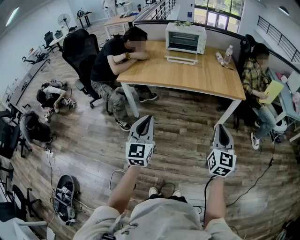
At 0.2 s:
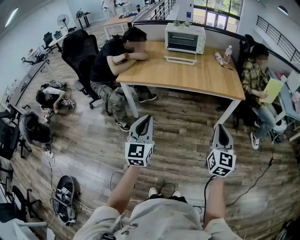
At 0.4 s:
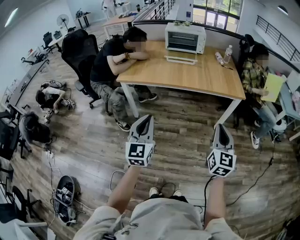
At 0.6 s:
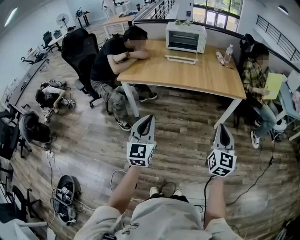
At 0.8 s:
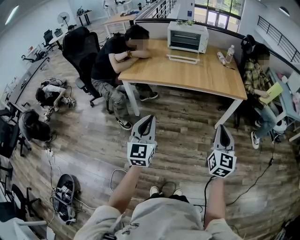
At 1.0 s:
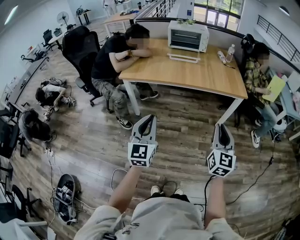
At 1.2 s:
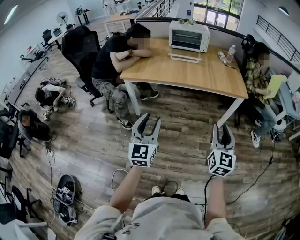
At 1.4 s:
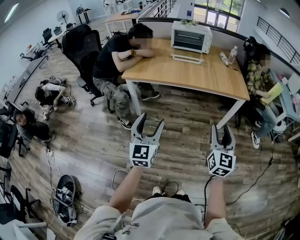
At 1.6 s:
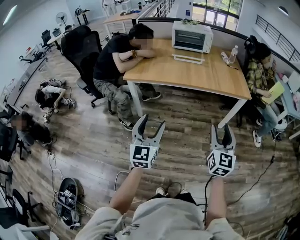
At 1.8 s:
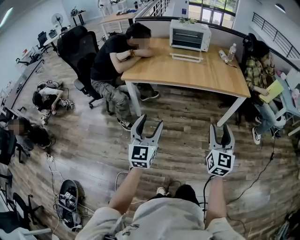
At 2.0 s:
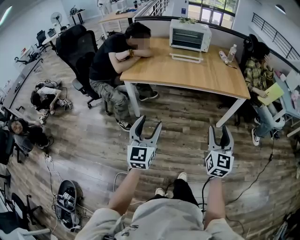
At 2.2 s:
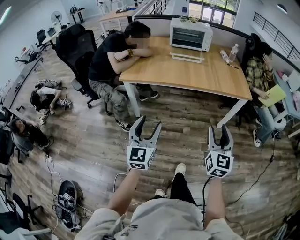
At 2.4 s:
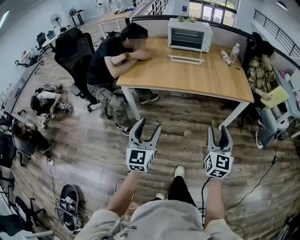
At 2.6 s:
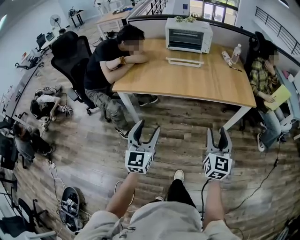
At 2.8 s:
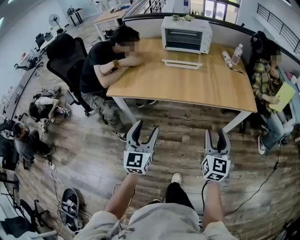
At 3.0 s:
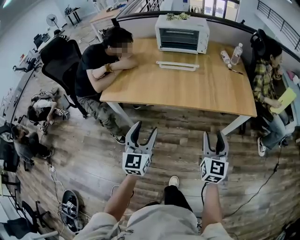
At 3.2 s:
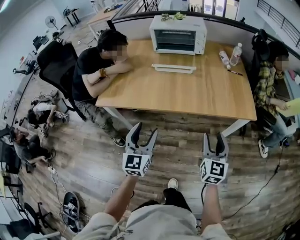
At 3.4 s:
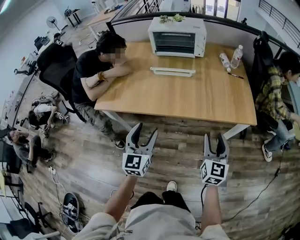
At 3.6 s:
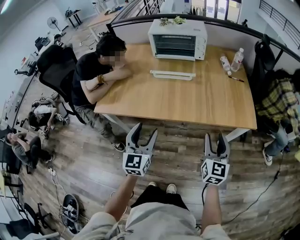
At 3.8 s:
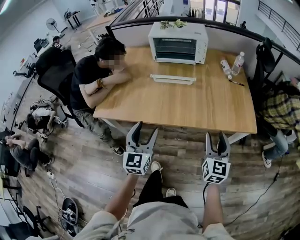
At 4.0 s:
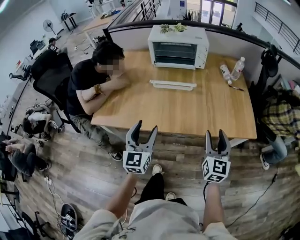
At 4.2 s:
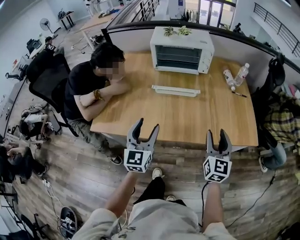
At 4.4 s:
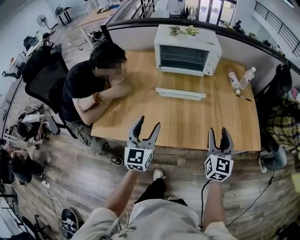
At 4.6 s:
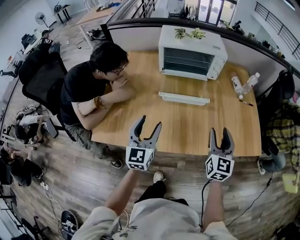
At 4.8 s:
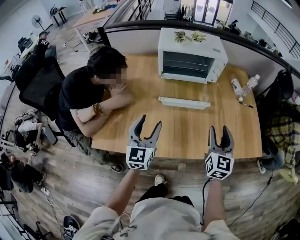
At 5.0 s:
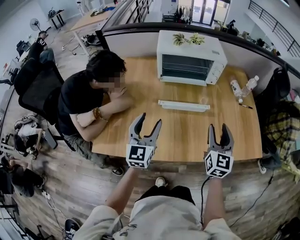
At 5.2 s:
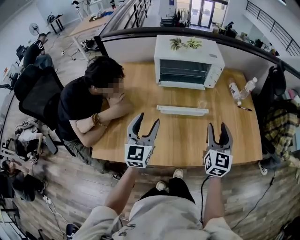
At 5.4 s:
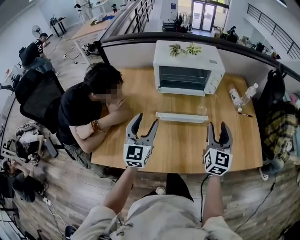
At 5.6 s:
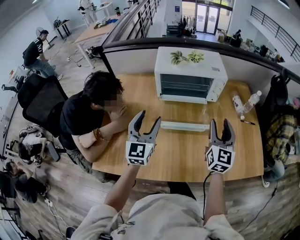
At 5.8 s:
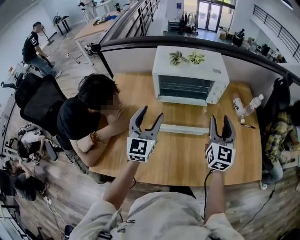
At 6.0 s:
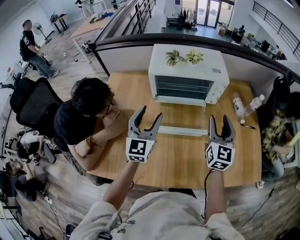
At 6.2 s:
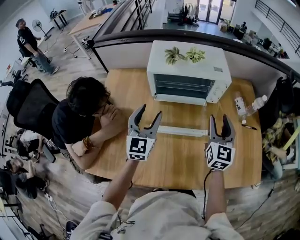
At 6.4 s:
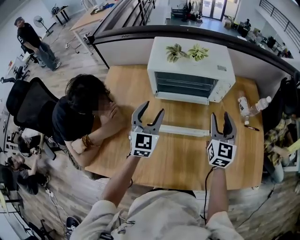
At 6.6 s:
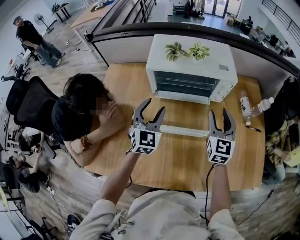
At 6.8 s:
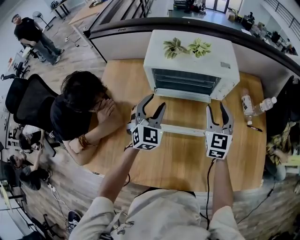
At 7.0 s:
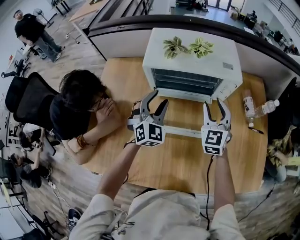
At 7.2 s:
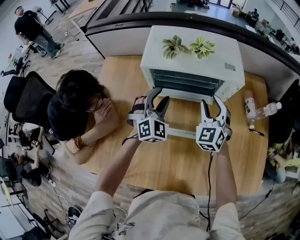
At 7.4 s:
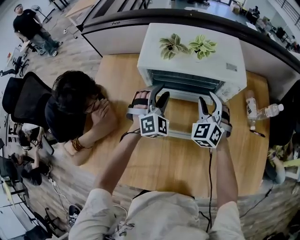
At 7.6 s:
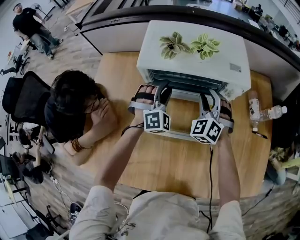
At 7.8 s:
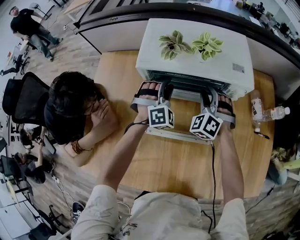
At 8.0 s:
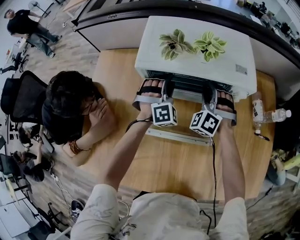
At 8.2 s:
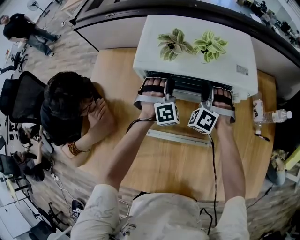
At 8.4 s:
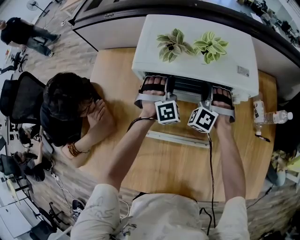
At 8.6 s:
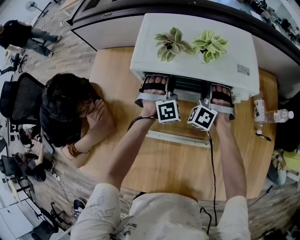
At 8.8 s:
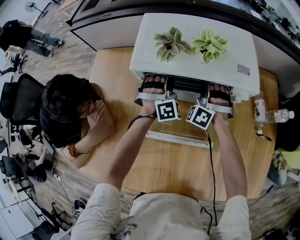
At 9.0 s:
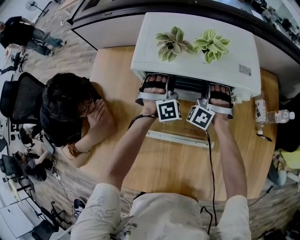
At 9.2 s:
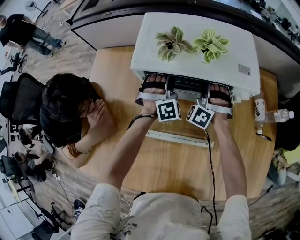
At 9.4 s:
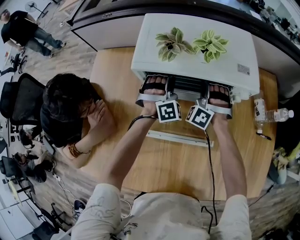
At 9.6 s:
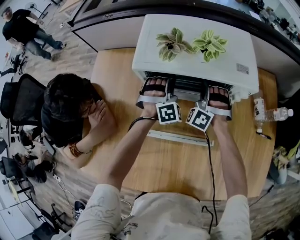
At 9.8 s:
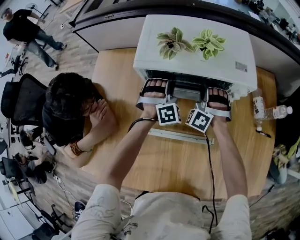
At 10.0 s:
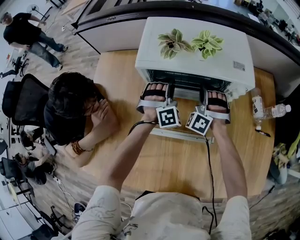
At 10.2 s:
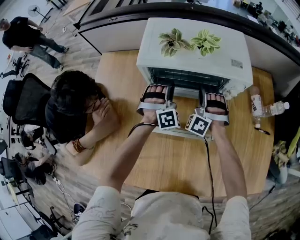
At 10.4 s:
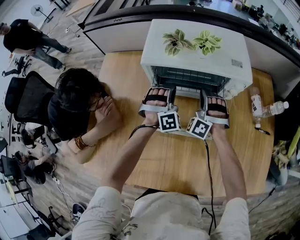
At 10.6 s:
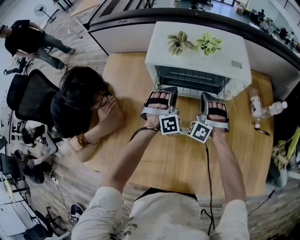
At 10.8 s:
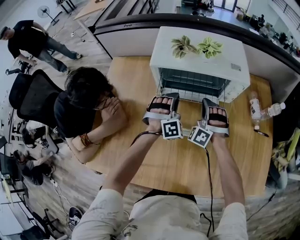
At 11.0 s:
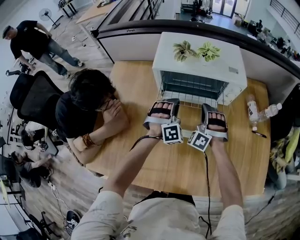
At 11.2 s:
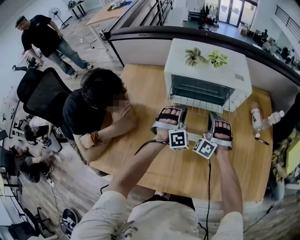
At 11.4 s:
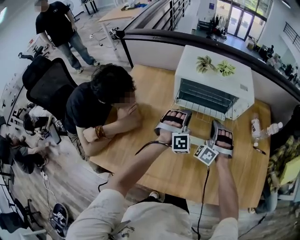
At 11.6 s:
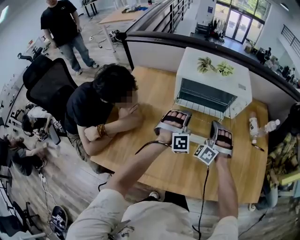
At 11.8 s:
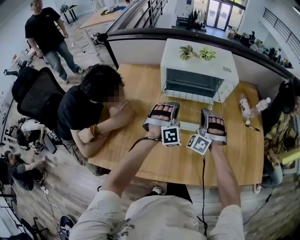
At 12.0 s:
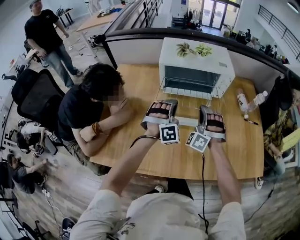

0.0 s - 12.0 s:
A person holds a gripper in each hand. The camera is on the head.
0.0 s - 1.6 s: The two grippers go about 5 cm to the left. The right gripper opens, while the left gripper opens.
1.6 s - 3.0 s: Both grippers move forward, approximately 25 cm.
3.0 s - 4.4 s: The grippers both shift forward by approximately 25 cm.
4.4 s - 6.0 s: The grippers both shift forward by some 25 cm.
6.0 s - 7.6 s: The left gripper goes roughly 25 cm forward and downward, and rolls clockwise, seen from behind, by about 60 degrees. Meanwhile the right gripper heads forward, downward and to the left, covering roughly 25 cm, and rolls counterclockwise, seen from behind, by some 50 degrees.
7.6 s - 9.0 s: Both grippers move forward, approximately 10 cm. The left gripper closes up, while the right gripper swivels approximately 30 degrees, and closes its fingers.
9.0 s - 10.4 s: Both grippers move backward, approximately 10 cm.
10.4 s - 12.0 s: The two grippers go about 20 cm backward and upward.

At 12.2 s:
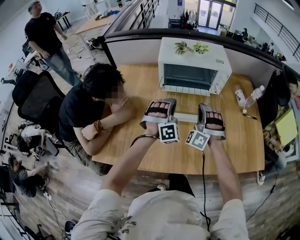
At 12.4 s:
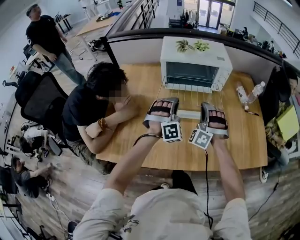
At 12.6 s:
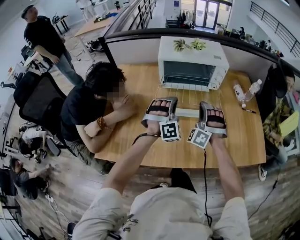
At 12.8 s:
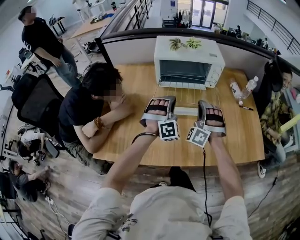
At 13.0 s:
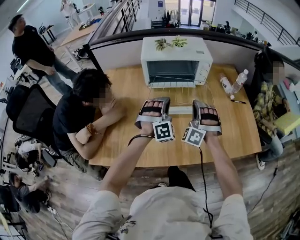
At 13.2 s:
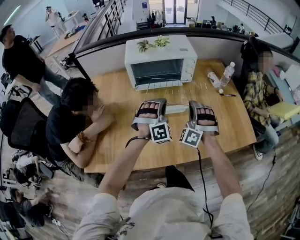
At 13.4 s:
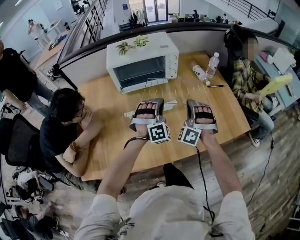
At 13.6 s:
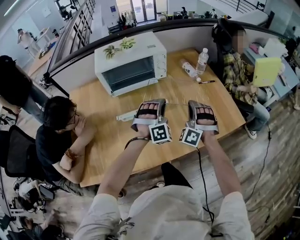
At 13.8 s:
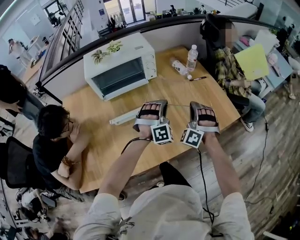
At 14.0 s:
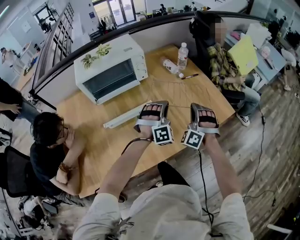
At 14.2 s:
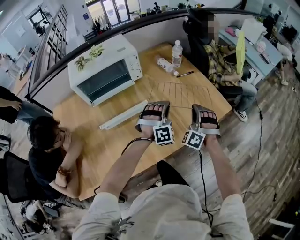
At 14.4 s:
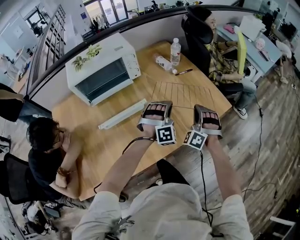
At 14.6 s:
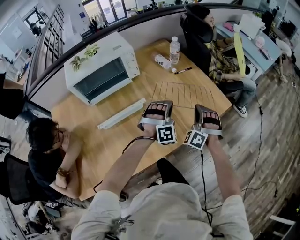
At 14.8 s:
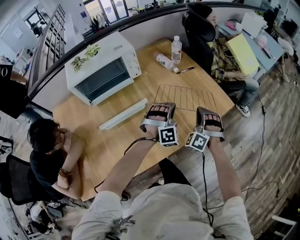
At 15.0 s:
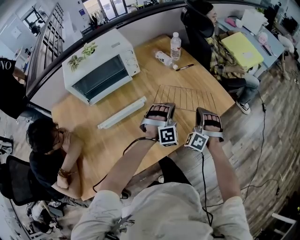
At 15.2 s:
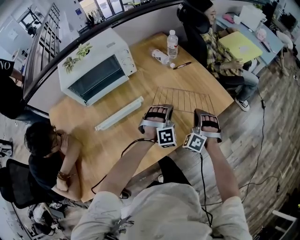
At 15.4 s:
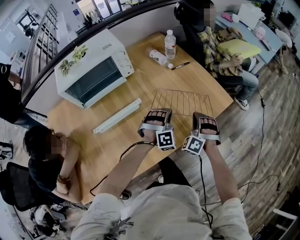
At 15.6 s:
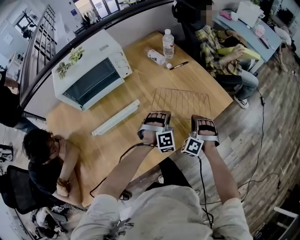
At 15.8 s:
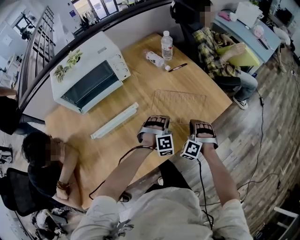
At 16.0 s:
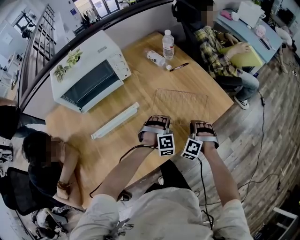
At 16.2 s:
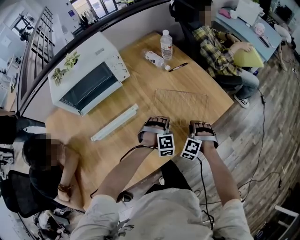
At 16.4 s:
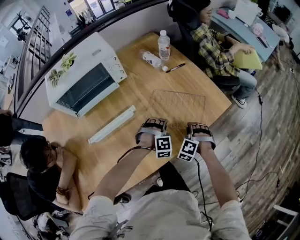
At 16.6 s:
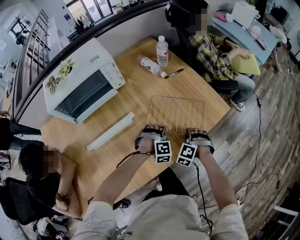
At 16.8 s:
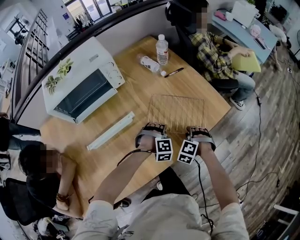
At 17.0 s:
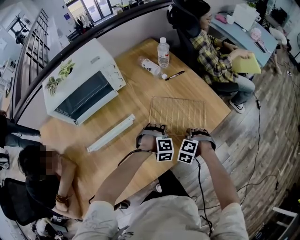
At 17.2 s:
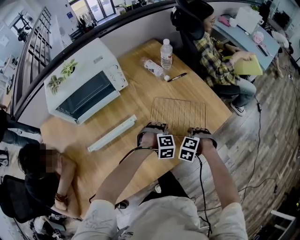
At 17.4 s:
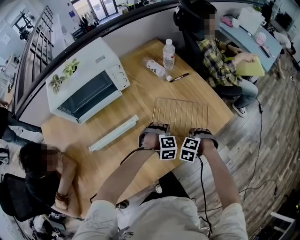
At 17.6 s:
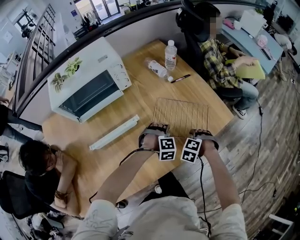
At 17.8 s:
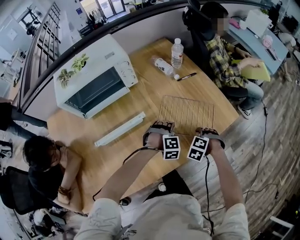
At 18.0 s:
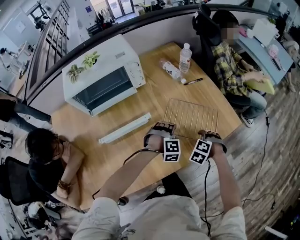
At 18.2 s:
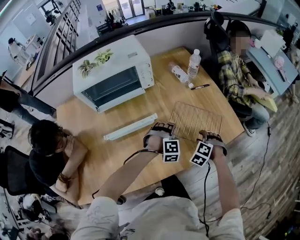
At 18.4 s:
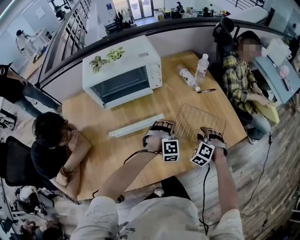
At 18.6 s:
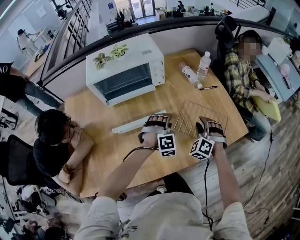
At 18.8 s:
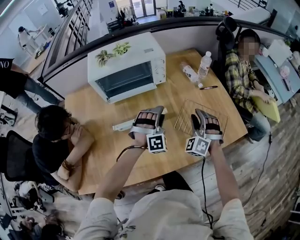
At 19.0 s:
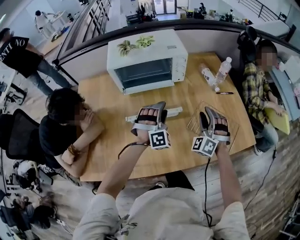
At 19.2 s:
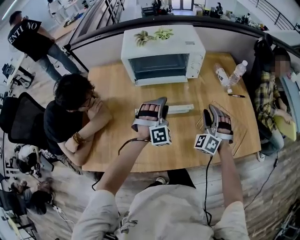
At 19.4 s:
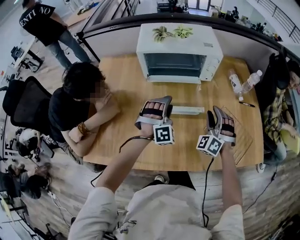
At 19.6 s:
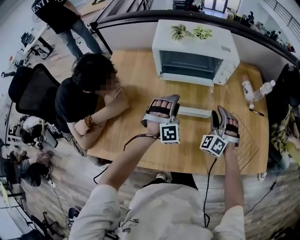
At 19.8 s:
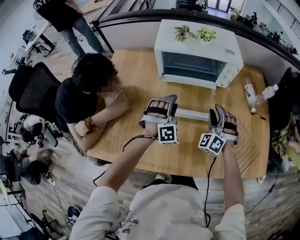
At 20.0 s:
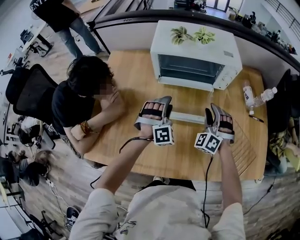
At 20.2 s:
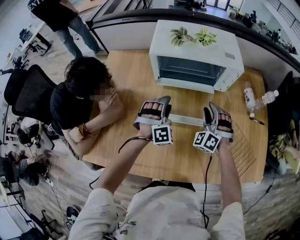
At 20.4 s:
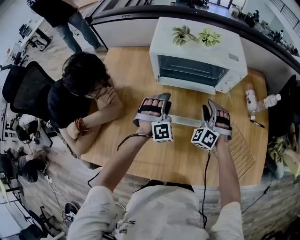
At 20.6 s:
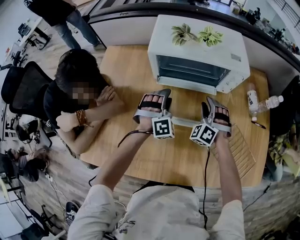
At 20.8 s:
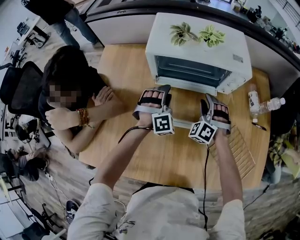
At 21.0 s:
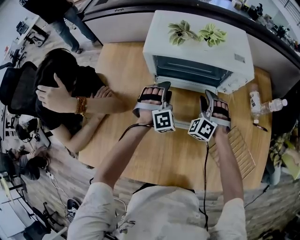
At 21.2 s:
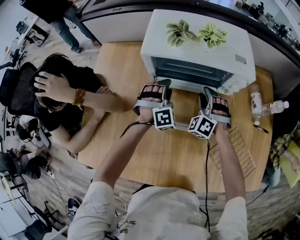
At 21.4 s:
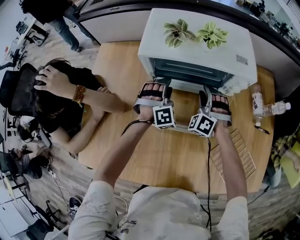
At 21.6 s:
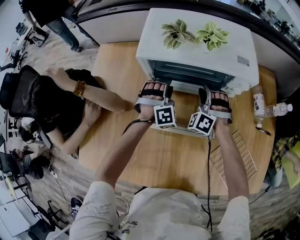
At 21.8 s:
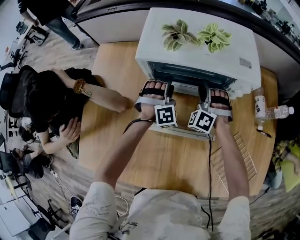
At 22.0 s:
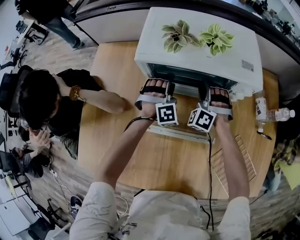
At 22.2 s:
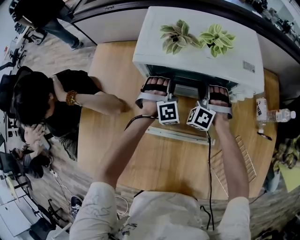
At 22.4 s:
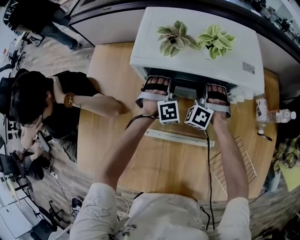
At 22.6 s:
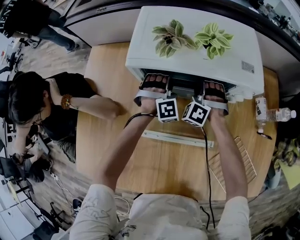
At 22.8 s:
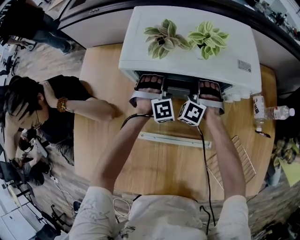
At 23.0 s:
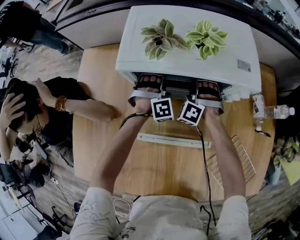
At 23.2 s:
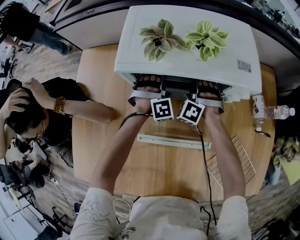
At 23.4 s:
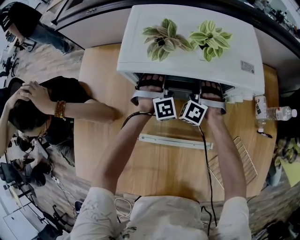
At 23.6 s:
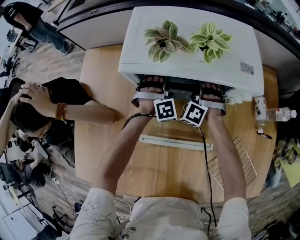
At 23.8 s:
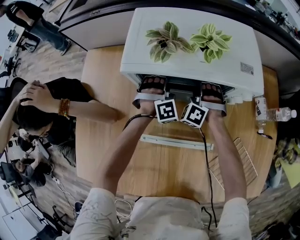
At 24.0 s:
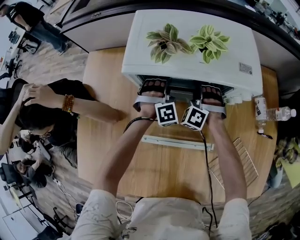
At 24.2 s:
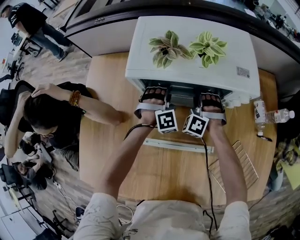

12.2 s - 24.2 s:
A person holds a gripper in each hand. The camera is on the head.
12.2 s - 13.8 s: The left gripper moves approximately 25 cm, and changes its angle by approximately 30 degrees, while the right gripper changes place by some 25 cm, and changes its angle by about 30 degrees.
13.8 s - 15.2 s: The grippers both shift to the right and downward by approximately 15 cm.
15.2 s - 16.6 s: Both grippers travel together downward, roughly 10 cm. The left gripper turns by roughly 30 degrees; the right gripper tilts its fingers some 30 degrees downward, and opens up.
16.6 s - 18.2 s: The right gripper ends up some 5 cm from where it was; the left gripper moves to the left, about 5 cm, and opens.
18.2 s - 19.8 s: The right gripper shifts by roughly 30 cm, and tips its fingers upward by some 40 degrees; the left gripper ends up approximately 30 cm from where it was, and turns by some 50 degrees.
19.8 s - 21.2 s: The grippers both shift forward by some 15 cm.
21.2 s - 22.6 s: The two grippers go roughly 10 cm forward.
22.6 s - 24.2 s: The left gripper closes its fingers. Meanwhile the right gripper closes up.
